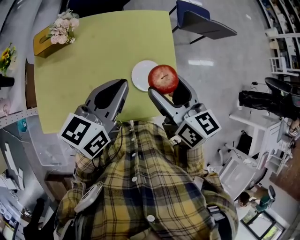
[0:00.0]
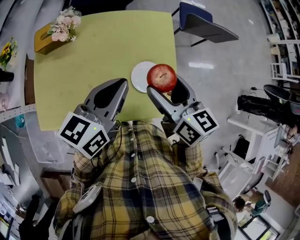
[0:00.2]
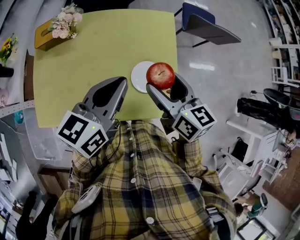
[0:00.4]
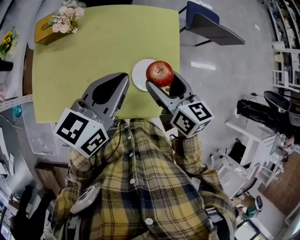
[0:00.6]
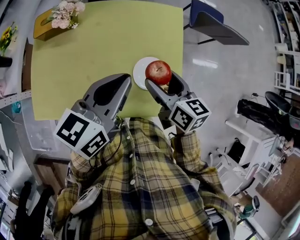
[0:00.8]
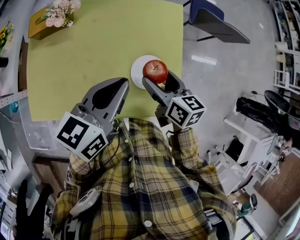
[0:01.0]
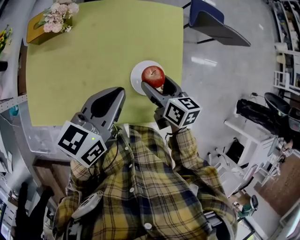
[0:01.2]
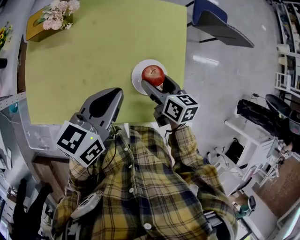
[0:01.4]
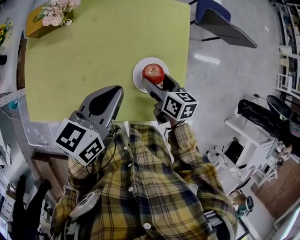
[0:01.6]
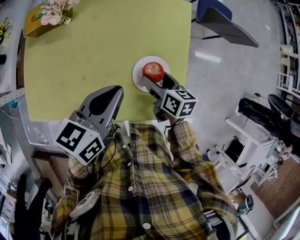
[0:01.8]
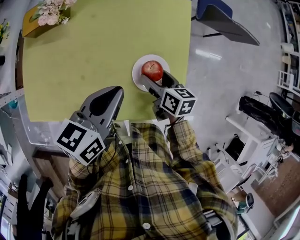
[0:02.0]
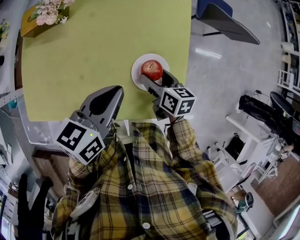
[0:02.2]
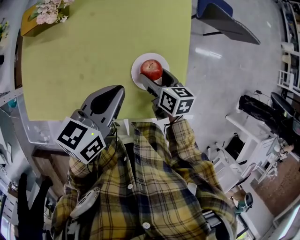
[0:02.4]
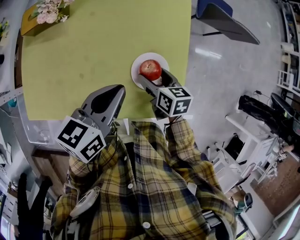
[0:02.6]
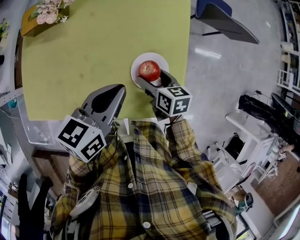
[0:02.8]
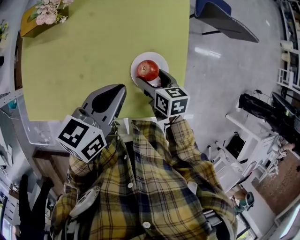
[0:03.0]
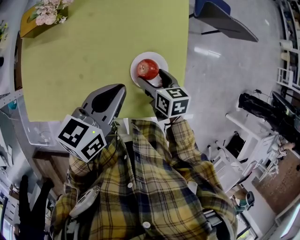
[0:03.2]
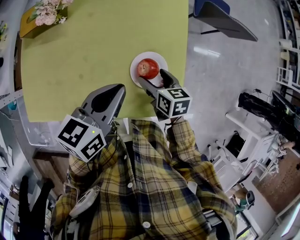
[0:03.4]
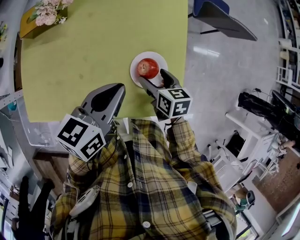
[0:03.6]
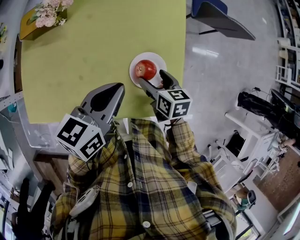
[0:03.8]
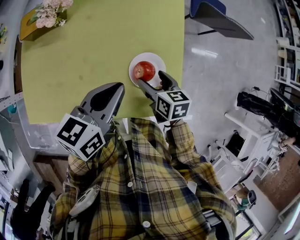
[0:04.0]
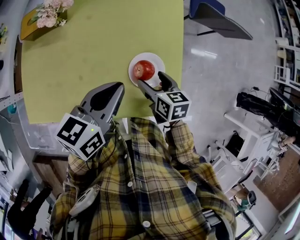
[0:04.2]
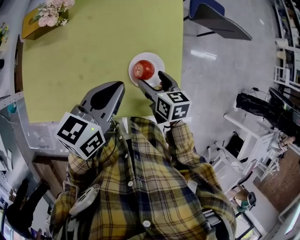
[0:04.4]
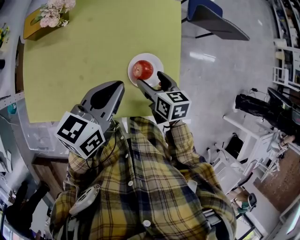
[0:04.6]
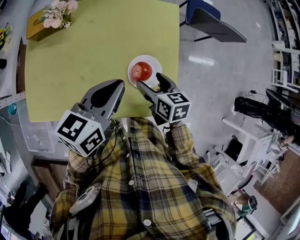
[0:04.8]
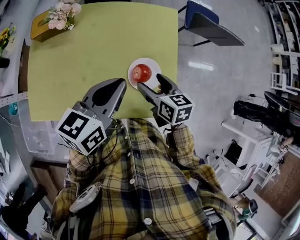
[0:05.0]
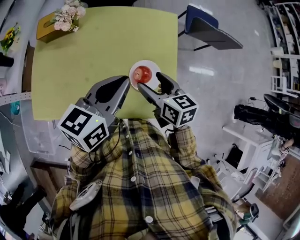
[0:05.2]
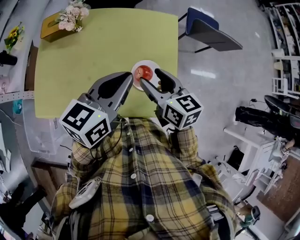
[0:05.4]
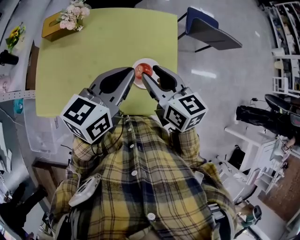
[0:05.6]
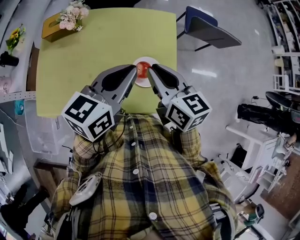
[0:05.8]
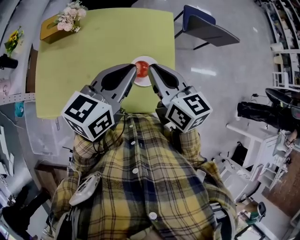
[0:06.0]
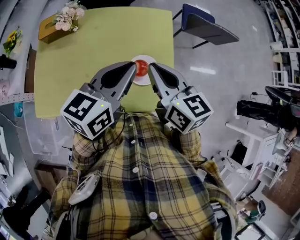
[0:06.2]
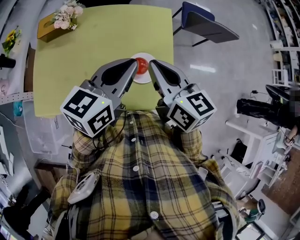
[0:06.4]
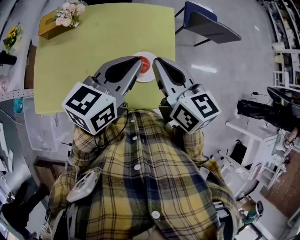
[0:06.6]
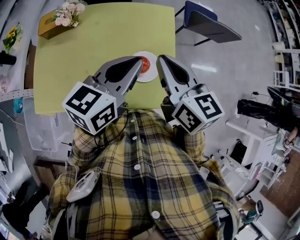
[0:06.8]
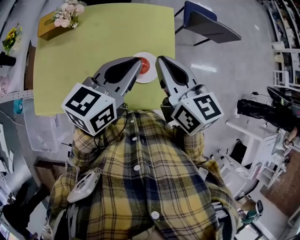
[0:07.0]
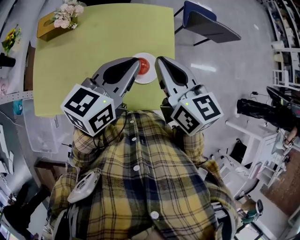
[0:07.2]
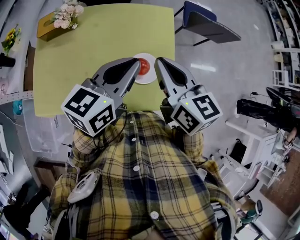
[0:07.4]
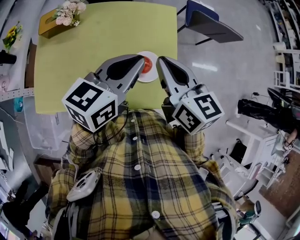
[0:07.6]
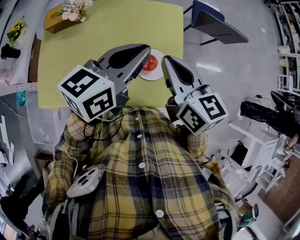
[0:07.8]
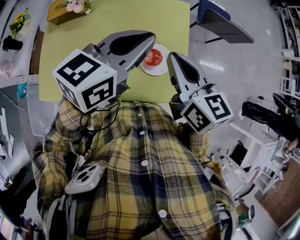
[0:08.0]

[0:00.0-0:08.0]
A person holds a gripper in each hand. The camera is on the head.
0:00.0 to 0:01.6: The right gripper shifts some 25 cm downward, and rotates some 20 degrees. The left gripper is displaced downward by some 10 cm.
0:01.6 to 0:03.2: There are only small adjustments of the grippers.
0:03.2 to 0:04.8: The right gripper goes some 5 cm upward.
0:04.8 to 0:06.4: The left gripper shifts roughly 5 cm upward. Meanwhile the right gripper moves upward, some 20 cm, rotates roughly 30 degrees, and closes its fingers.
0:06.4 to 0:08.0: The left gripper shifts by roughly 5 cm.

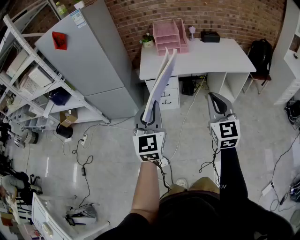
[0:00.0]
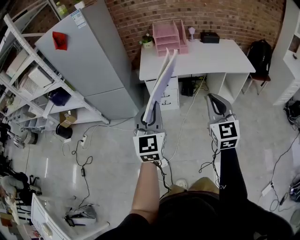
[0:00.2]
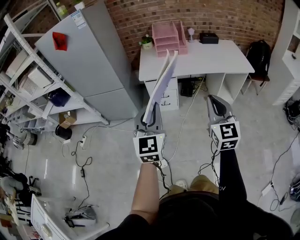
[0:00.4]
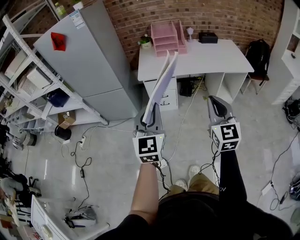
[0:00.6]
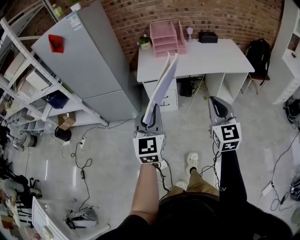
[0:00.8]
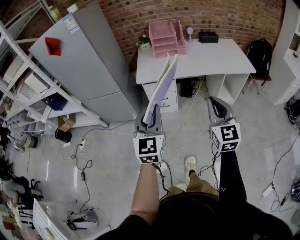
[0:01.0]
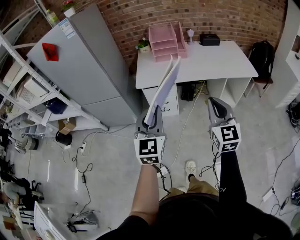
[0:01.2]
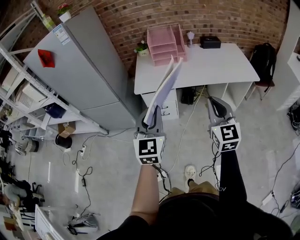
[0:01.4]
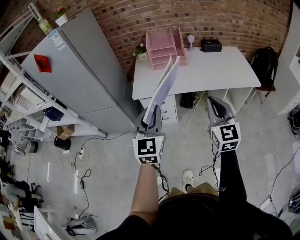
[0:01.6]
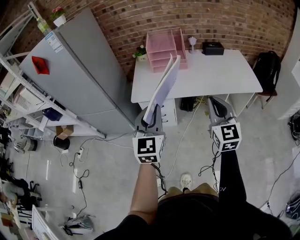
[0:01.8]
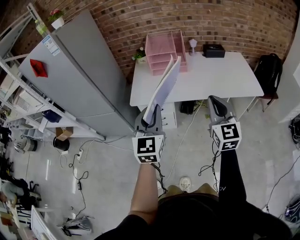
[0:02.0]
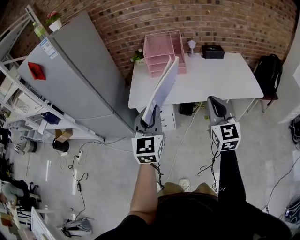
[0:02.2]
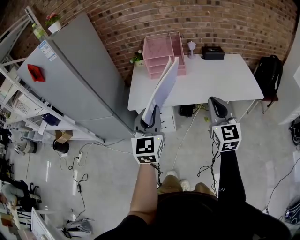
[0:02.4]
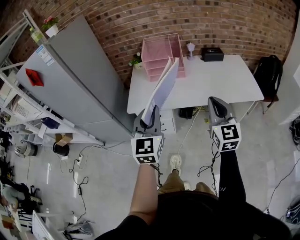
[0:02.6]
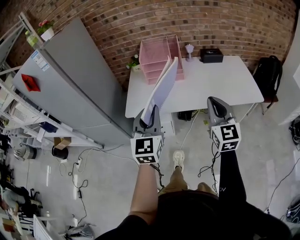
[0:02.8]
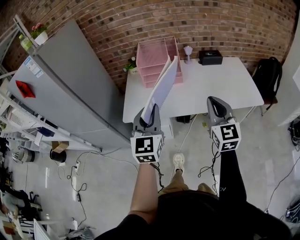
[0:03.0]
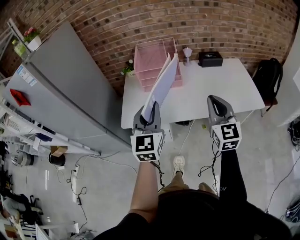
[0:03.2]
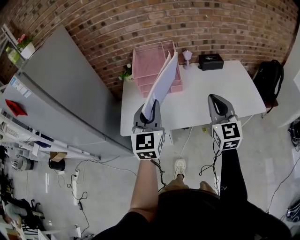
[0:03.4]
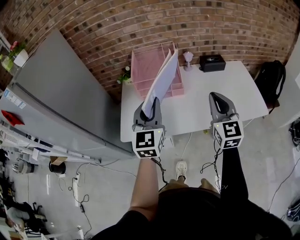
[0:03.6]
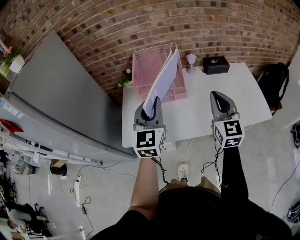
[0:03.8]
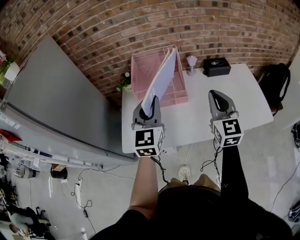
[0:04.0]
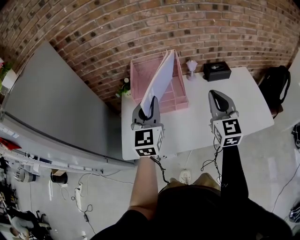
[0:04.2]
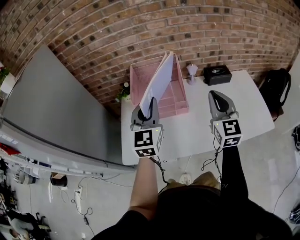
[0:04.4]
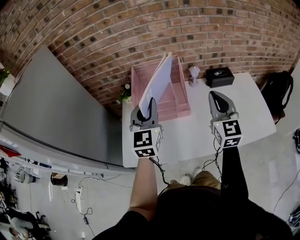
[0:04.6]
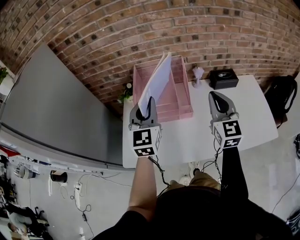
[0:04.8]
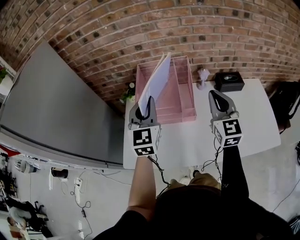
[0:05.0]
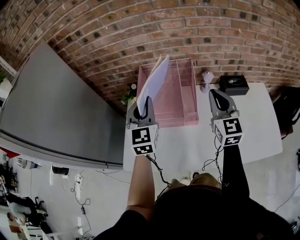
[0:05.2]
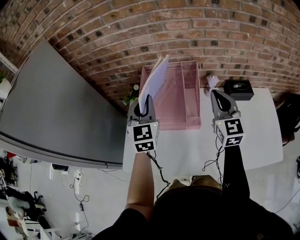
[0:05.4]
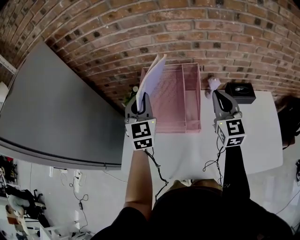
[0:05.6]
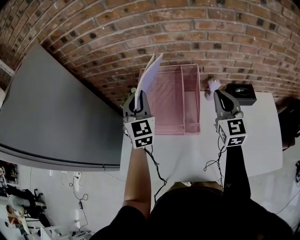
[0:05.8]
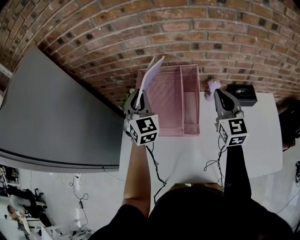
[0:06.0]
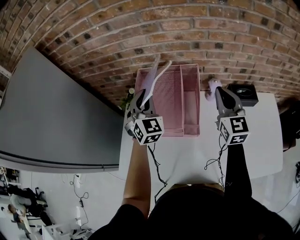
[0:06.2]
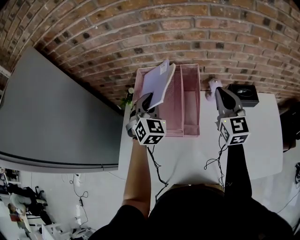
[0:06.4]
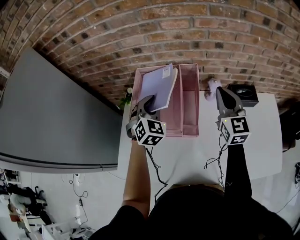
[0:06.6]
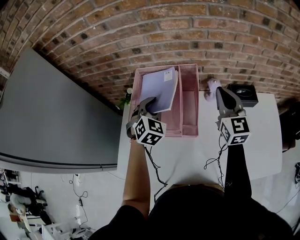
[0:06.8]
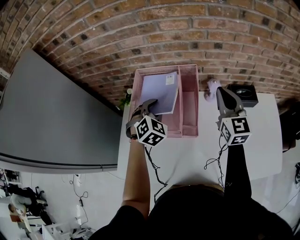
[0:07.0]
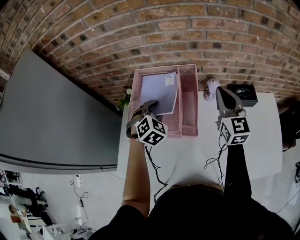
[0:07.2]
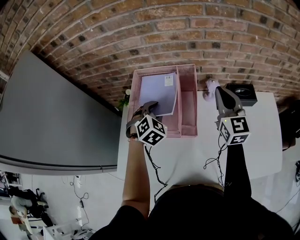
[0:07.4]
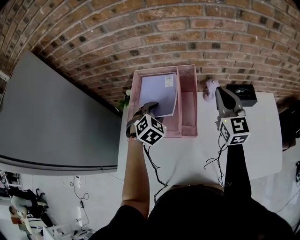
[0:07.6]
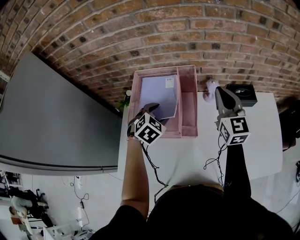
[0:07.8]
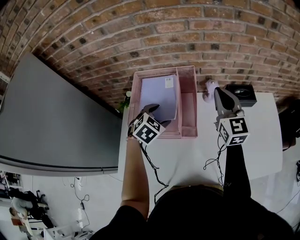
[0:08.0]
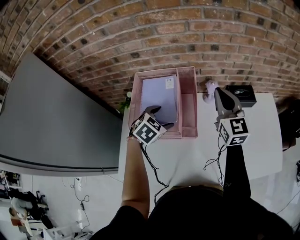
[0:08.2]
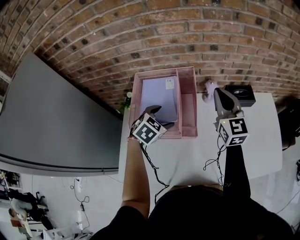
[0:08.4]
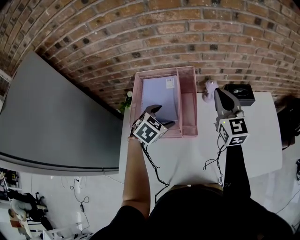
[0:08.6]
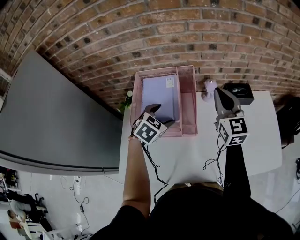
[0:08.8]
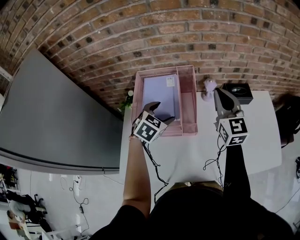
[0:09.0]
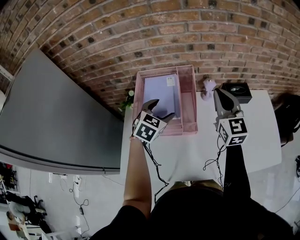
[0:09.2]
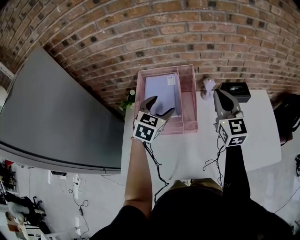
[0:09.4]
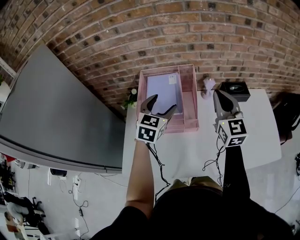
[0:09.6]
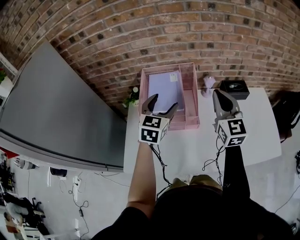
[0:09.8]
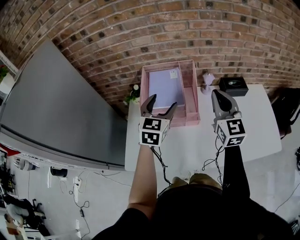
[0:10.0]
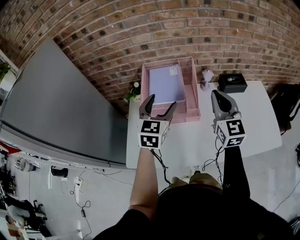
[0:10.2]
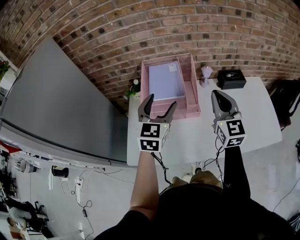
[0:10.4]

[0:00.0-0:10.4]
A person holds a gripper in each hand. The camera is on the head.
0:00.0 to 0:01.4: Both grippers move forward, about 15 cm.
0:01.4 to 0:03.0: Both grippers travel together forward, about 25 cm.
0:03.0 to 0:04.4: The two grippers go some 30 cm forward.
0:04.4 to 0:06.0: The two grippers go about 25 cm forward. The left gripper turns by some 30 degrees.
0:06.0 to 0:07.4: The left gripper heads downward and to the right, covering roughly 15 cm, and tips its fingers downward by approximately 40 degrees.
0:07.4 to 0:09.0: The right gripper changes place by roughly 5 cm, while the left gripper ends up approximately 5 cm from where it was, swivels about 20 degrees, and opens its fingers.
0:09.0 to 0:10.4: The left gripper heads backward and upward, covering about 20 cm, and tips its fingers upward by some 30 degrees, while the right gripper heads backward, covering approximately 15 cm.

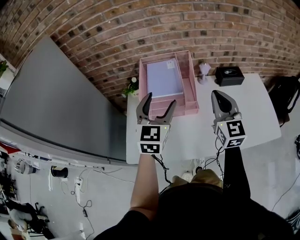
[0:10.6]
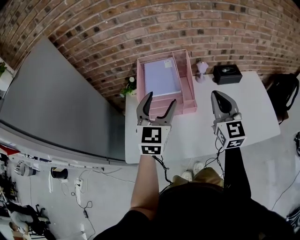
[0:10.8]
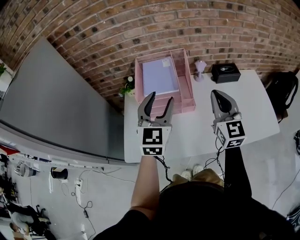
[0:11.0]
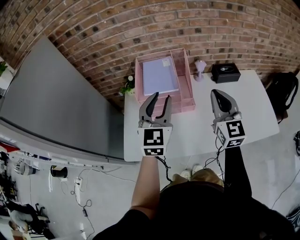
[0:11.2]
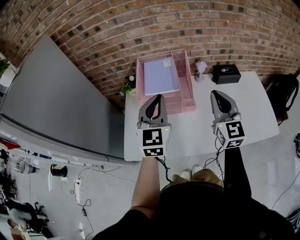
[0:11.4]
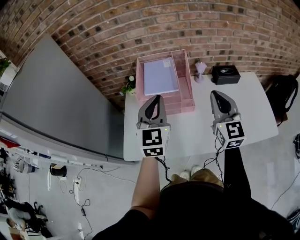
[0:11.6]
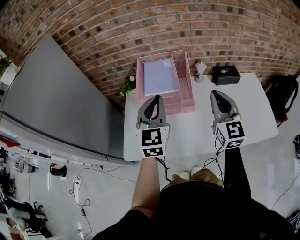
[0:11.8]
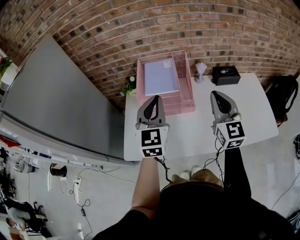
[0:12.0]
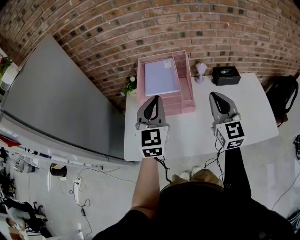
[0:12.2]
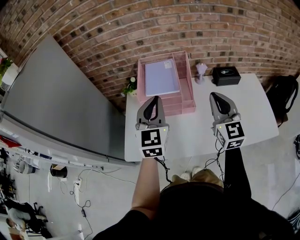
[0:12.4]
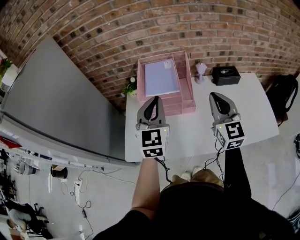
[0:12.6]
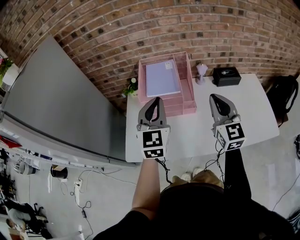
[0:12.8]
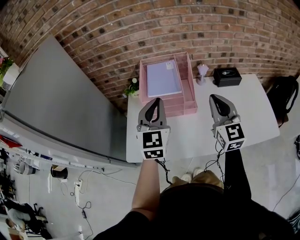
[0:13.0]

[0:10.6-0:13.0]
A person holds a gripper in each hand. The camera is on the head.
0:10.6 to 0:11.8: The left gripper closes up.
0:11.8 to 0:13.0: The grippers move only a little.

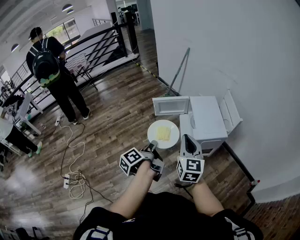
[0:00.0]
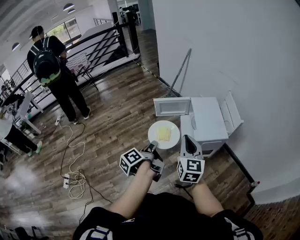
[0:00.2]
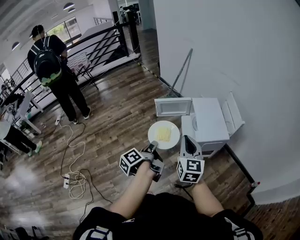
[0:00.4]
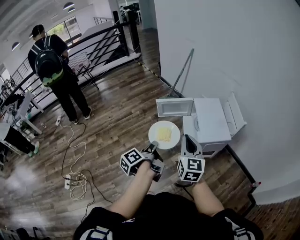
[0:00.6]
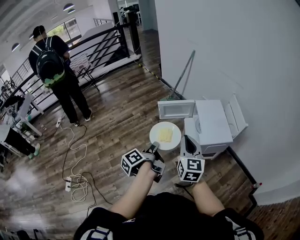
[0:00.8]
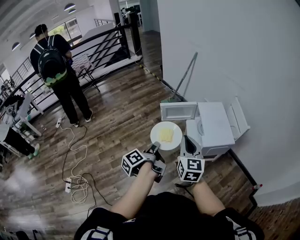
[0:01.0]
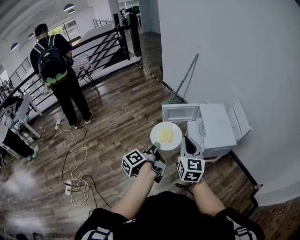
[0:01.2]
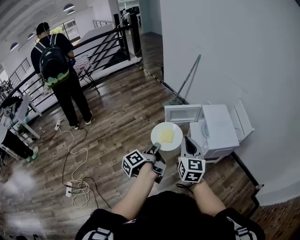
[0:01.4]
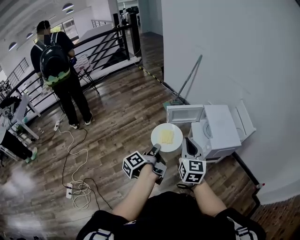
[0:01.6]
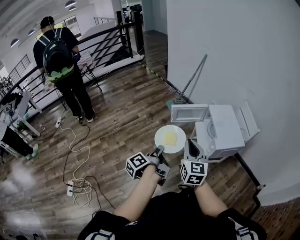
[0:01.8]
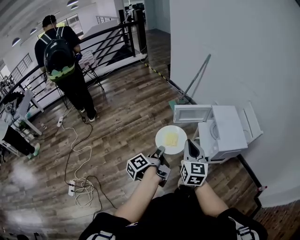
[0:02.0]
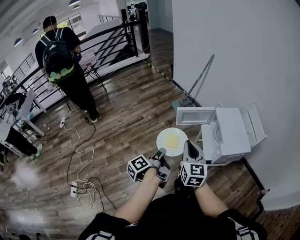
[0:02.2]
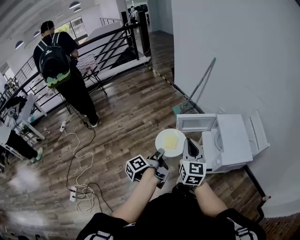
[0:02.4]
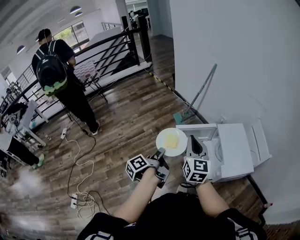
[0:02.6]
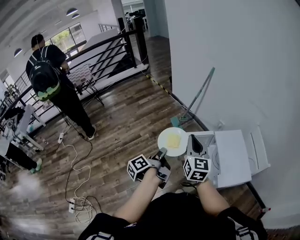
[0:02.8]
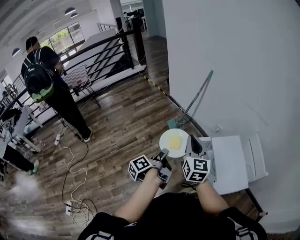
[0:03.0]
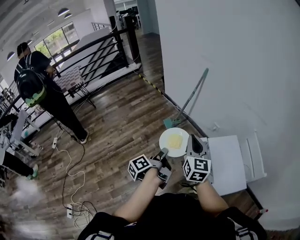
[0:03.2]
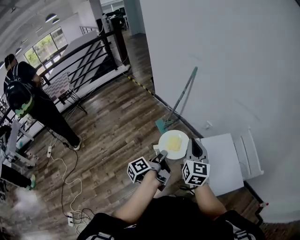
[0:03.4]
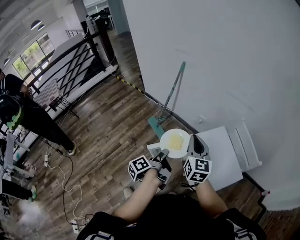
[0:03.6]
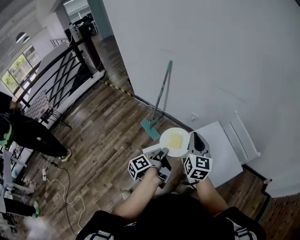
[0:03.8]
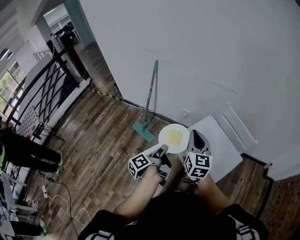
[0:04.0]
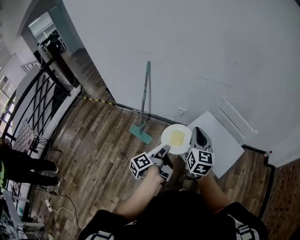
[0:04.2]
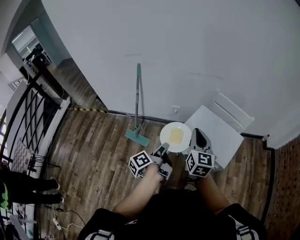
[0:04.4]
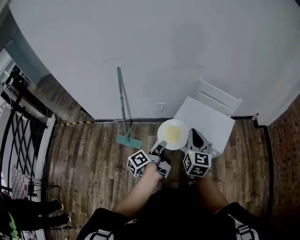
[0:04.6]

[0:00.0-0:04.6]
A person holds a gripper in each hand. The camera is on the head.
0:00.0 to 0:01.6: The two grippers go approximately 15 cm to the left.
0:01.6 to 0:03.0: The two grippers go approximately 30 cm forward.
0:03.0 to 0:04.6: The left gripper moves roughly 20 cm, and swivels roughly 50 degrees, while the right gripper moves roughly 10 cm, and changes its angle by some 60 degrees.
